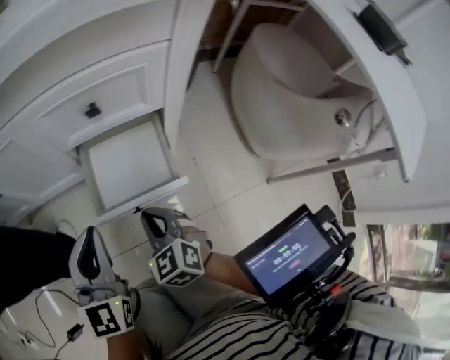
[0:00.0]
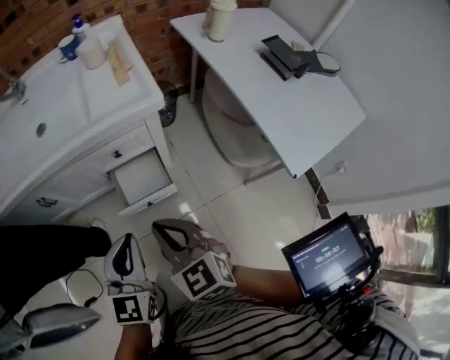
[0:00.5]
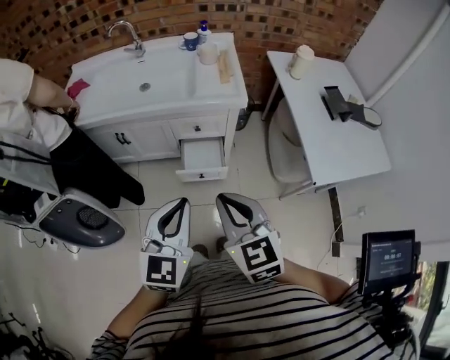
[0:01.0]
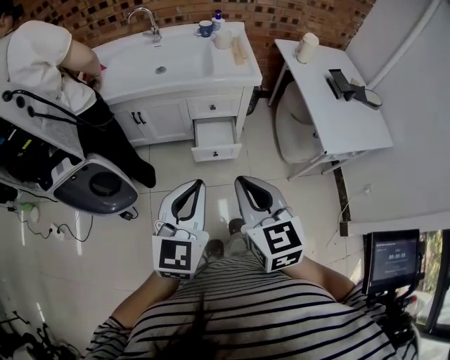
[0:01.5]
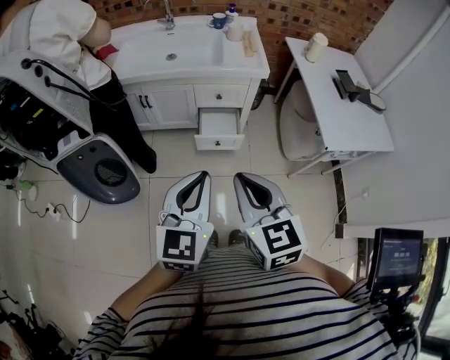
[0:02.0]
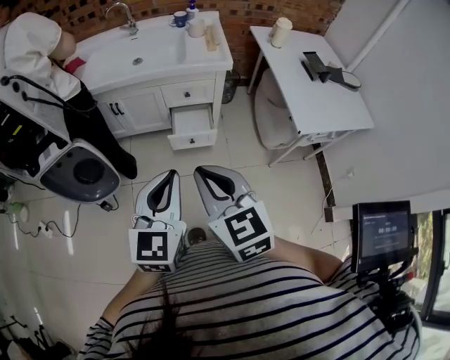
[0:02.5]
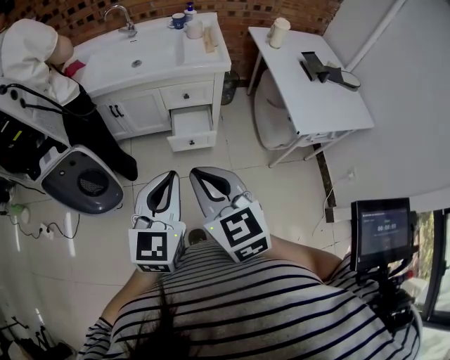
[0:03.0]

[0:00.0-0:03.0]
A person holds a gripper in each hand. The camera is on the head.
0:00.0 to 0:01.5: The two grippers go about 60 cm upward and backward. The right gripper turns by roughly 30 degrees.
0:01.5 to 0:03.0: The right gripper changes place by roughly 5 cm.

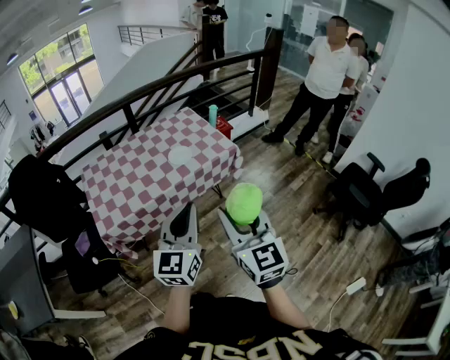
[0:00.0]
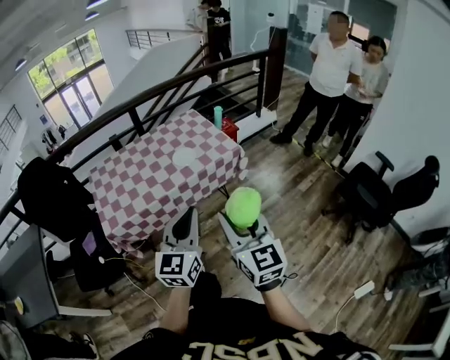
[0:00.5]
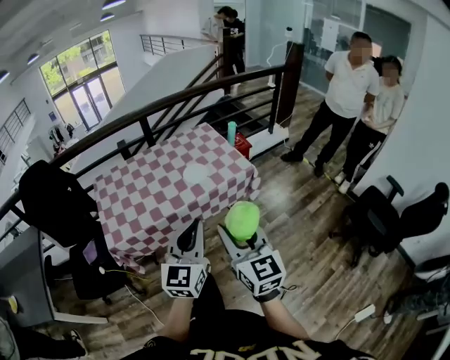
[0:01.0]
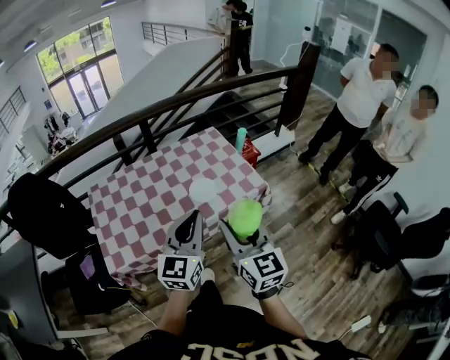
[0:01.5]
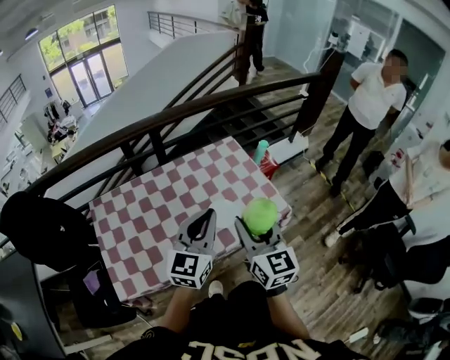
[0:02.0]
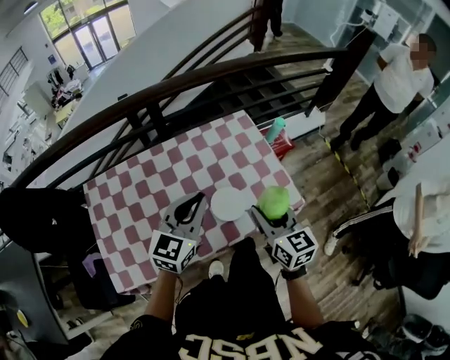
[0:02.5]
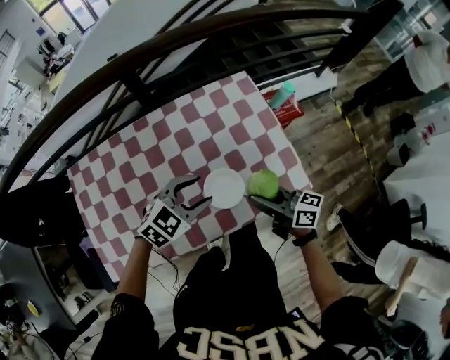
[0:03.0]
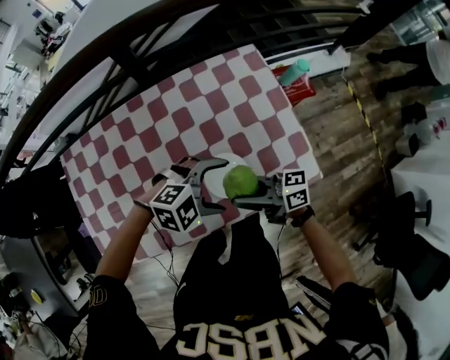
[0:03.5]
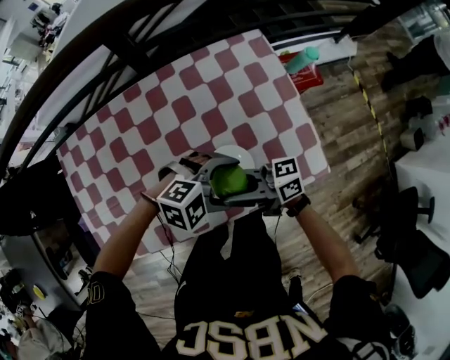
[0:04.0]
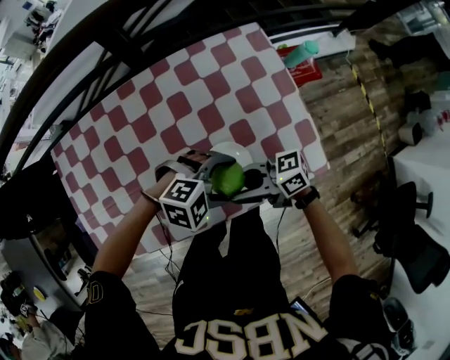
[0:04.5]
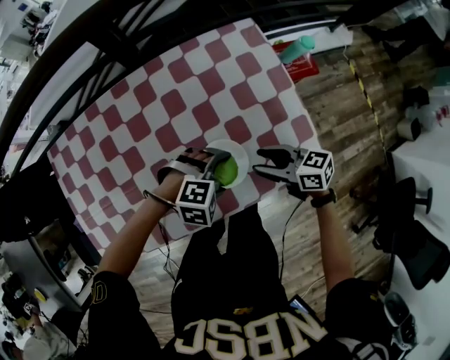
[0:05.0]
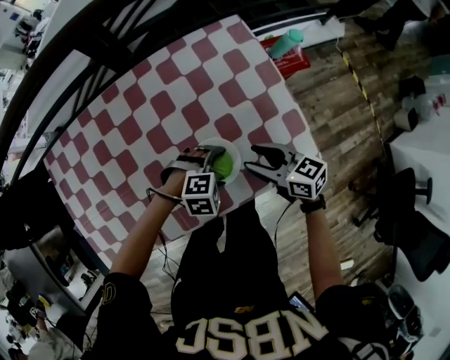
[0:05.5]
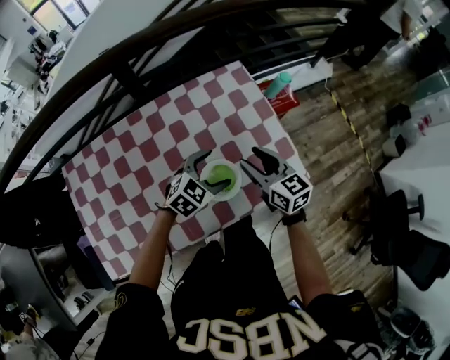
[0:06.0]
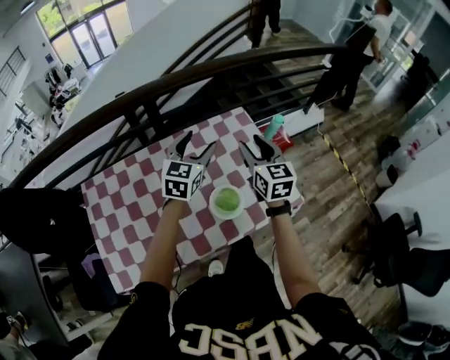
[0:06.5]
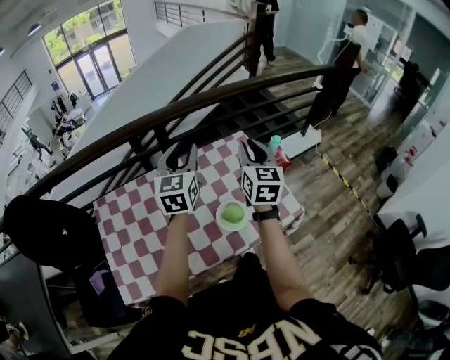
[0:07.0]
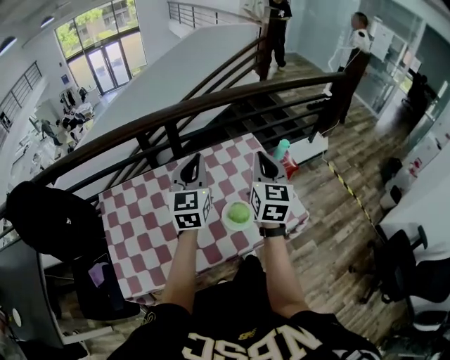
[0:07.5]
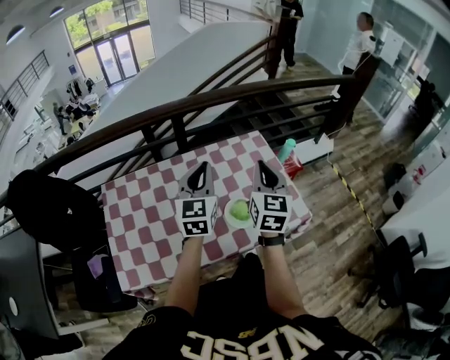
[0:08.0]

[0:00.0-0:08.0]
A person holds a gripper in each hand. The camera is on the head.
0:00.0 to 0:02.0: Both grippers travel together forward, approximately 40 cm.
0:02.0 to 0:04.0: Both grippers travel together downward, approximately 25 cm. The right gripper changes its angle by some 90 degrees. The left gripper angles its fingers downward, by approximately 40 degrees, and opens up.
0:04.0 to 0:06.0: The left gripper goes downward and returns, approximately 10 cm each way, and turns by roughly 40 degrees, while the right gripper goes downward and returns, some 10 cm each way, and changes its angle by approximately 70 degrees.
0:06.0 to 0:08.0: The right gripper travels upward by about 20 cm, swivels approximately 40 degrees, and closes up; the left gripper heads upward and to the left, covering roughly 30 cm, points its fingers roughly 30 degrees further upward, and closes up.

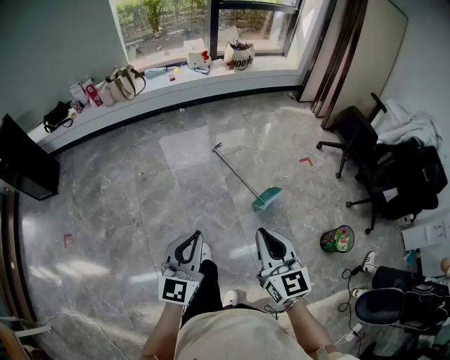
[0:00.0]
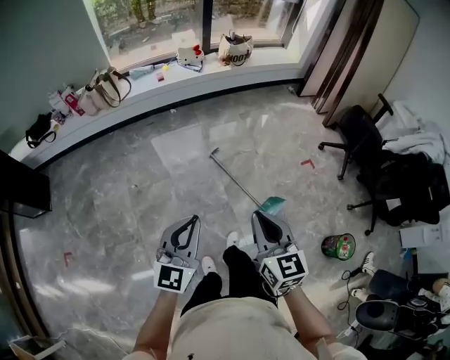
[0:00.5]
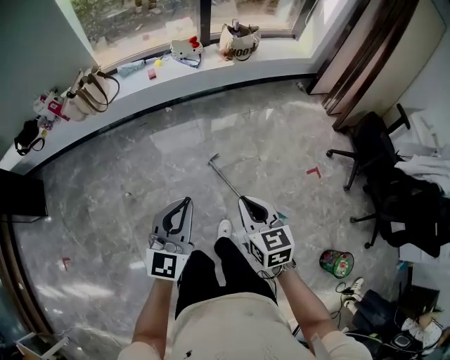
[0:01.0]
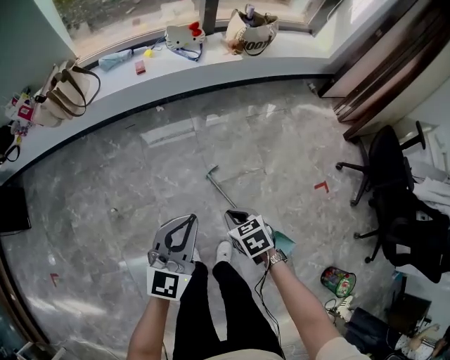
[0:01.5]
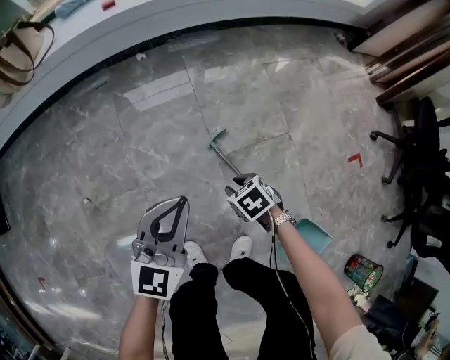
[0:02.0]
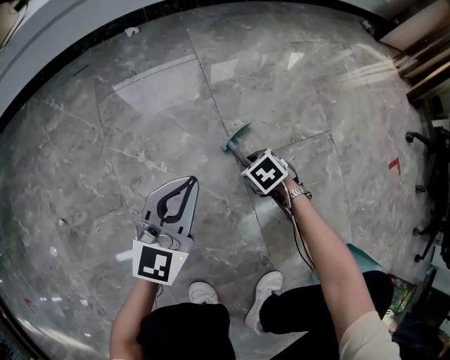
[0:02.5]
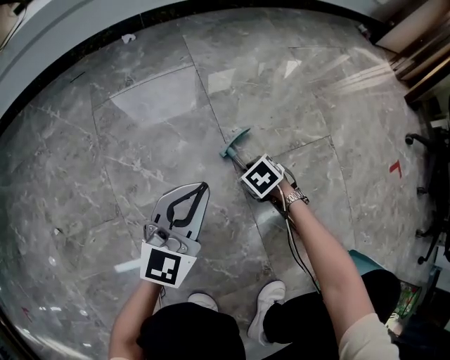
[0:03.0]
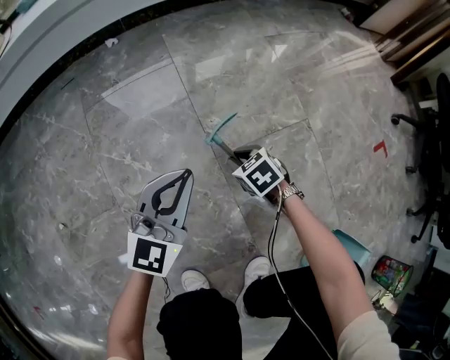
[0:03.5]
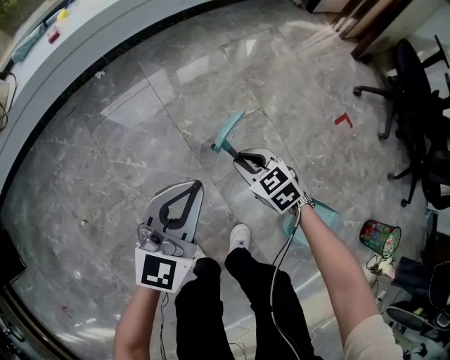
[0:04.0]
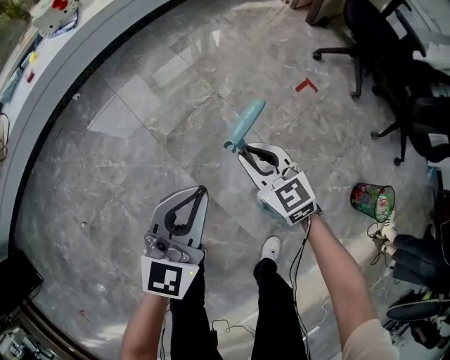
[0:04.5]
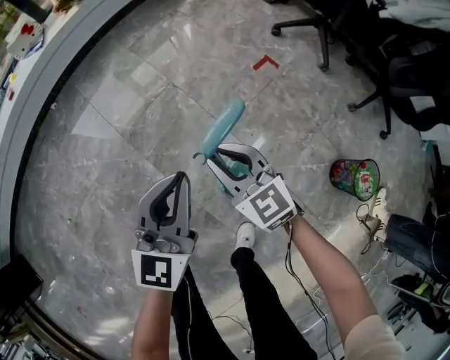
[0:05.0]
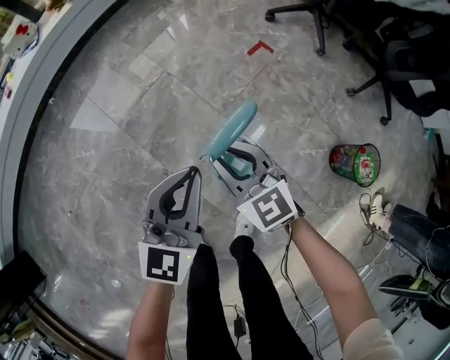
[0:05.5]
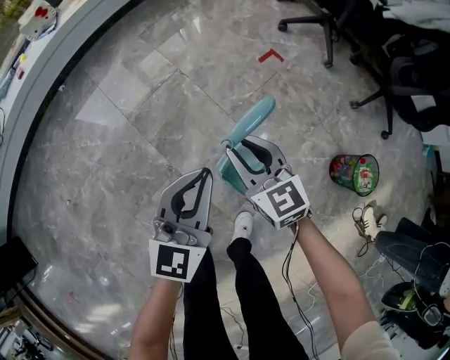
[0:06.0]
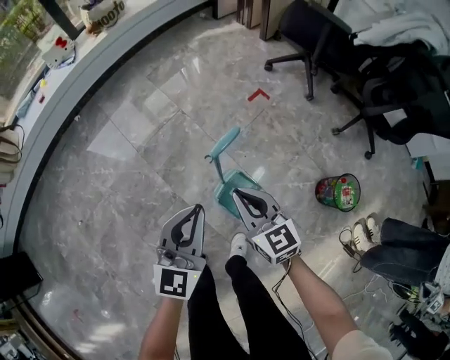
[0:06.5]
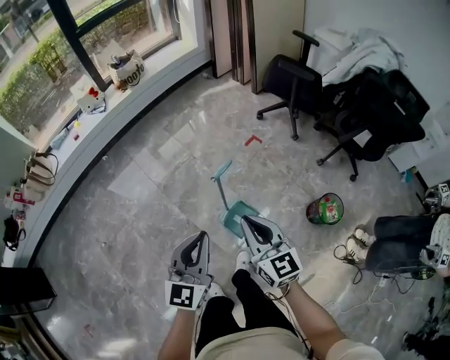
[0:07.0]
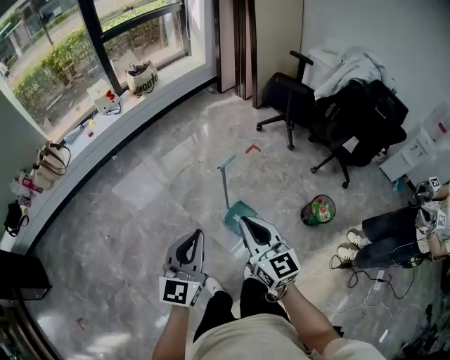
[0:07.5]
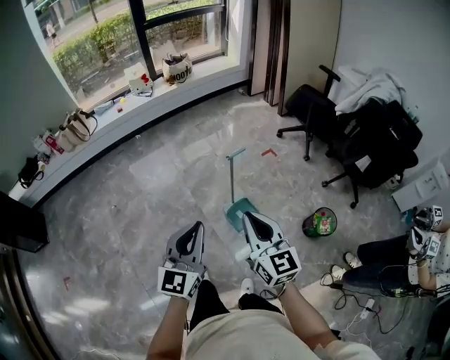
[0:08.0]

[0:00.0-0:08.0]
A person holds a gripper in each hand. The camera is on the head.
0:00.0 to 0:02.0: The two grippers travel together, about 70 cm. The right gripper heads downward, covering roughly 80 cm, tips its fingers downward by approximately 60 degrees, and opens.
0:02.0 to 0:04.0: The left gripper goes downward and returns, about 35 cm each way; the right gripper reaches about 35 cm downward, then returns, and turns by some 30 degrees.
0:04.0 to 0:06.0: Both grippers are carried to the right and backward, some 40 cm. The right gripper goes some 25 cm upward, and turns by about 40 degrees.
0:06.0 to 0:08.0: Both grippers move upward and backward, some 60 cm.

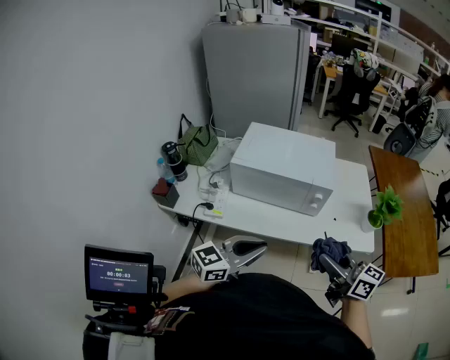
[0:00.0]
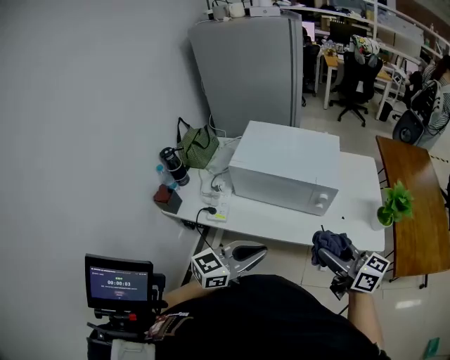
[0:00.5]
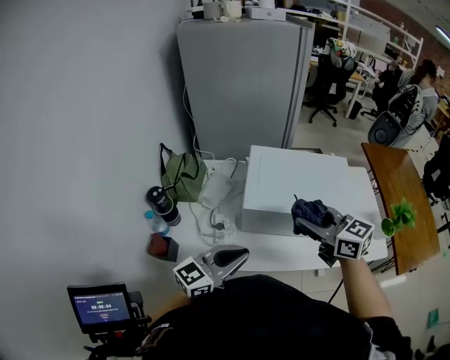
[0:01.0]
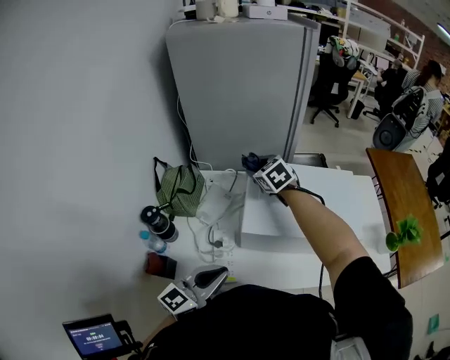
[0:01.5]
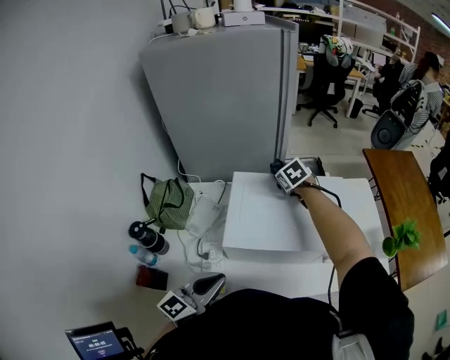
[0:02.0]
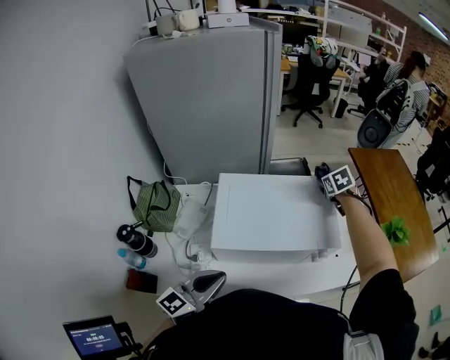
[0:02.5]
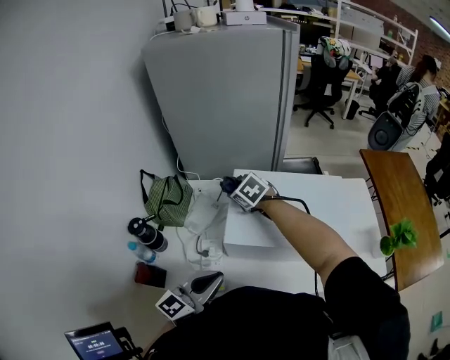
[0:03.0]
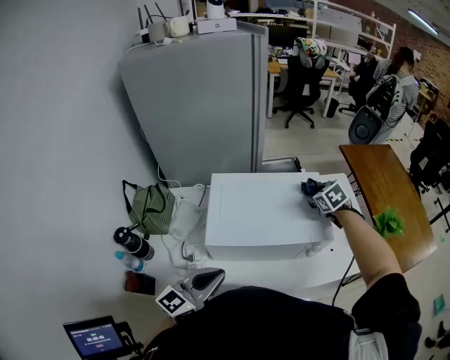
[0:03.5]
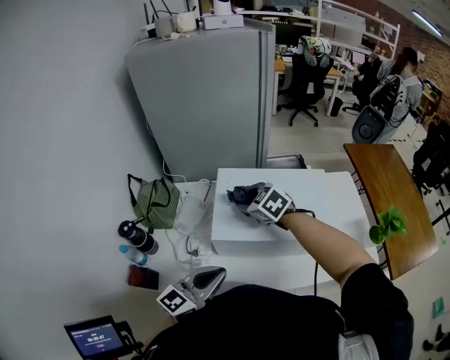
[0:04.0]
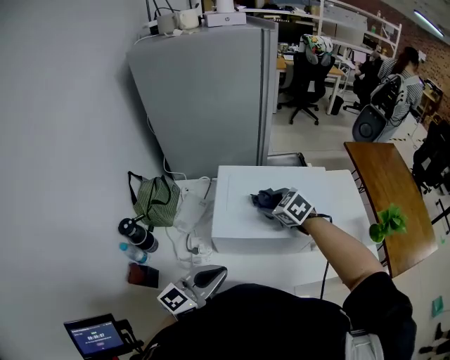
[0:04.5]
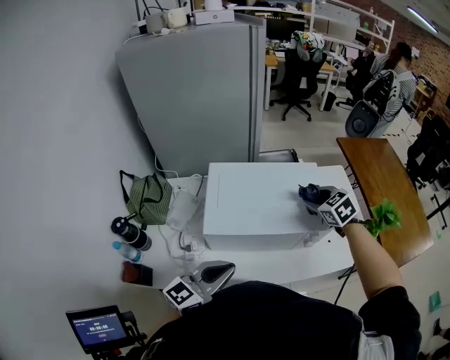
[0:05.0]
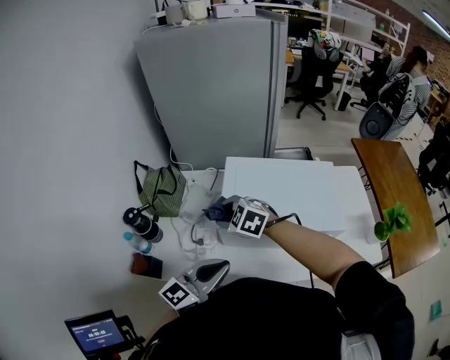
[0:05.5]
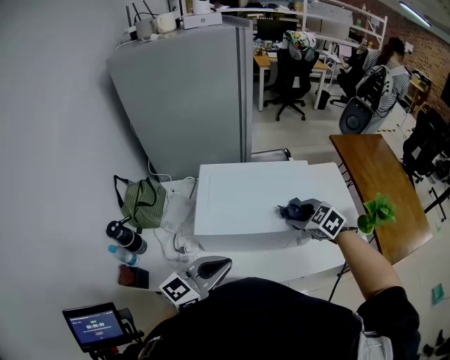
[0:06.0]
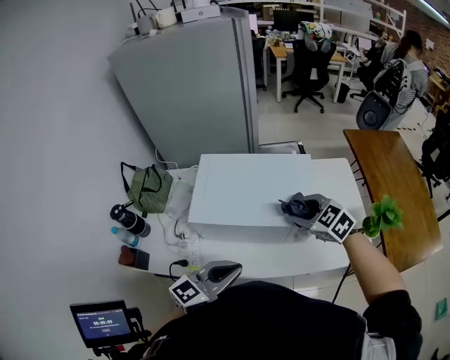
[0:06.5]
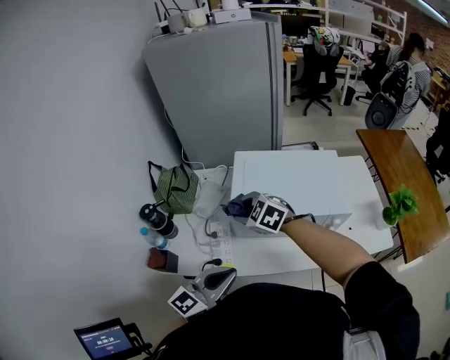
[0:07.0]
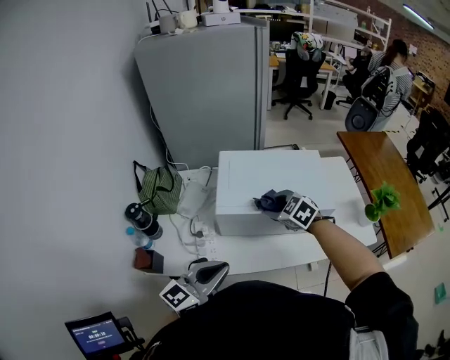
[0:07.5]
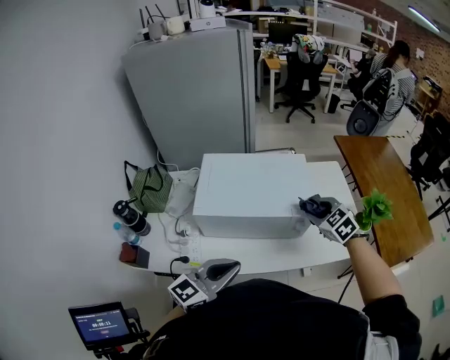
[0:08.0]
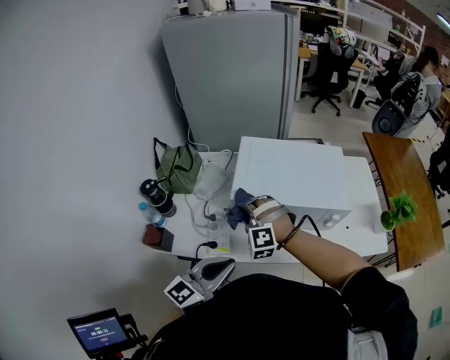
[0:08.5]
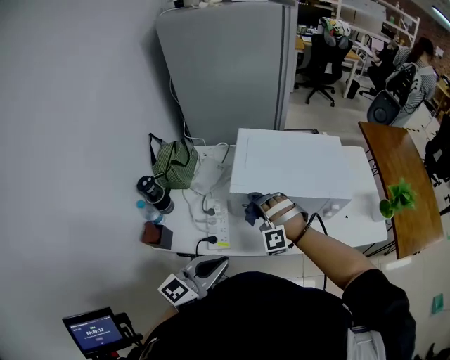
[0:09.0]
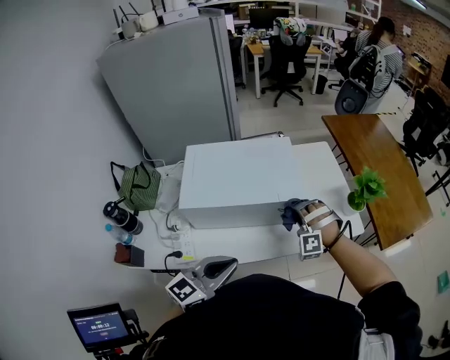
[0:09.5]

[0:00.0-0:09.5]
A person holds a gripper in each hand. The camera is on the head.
0:00.0 to 0:02.0: The left gripper is displaced forward and to the left by about 30 cm. Meanwhile the right gripper moves forward, about 60 cm, and angles its fingers downward, by some 50 degrees.
0:02.0 to 0:04.0: The right gripper moves about 20 cm, and changes its angle by about 30 degrees.
0:04.0 to 0:05.5: The right gripper moves backward, some 10 cm, and goes to the right and returns, approximately 25 cm each way.
0:05.5 to 0:07.5: The left gripper heads backward, covering roughly 5 cm, and goes to the right and returns, roughly 15 cm each way. Meanwhile the right gripper moves left and right over about 35 cm, changing direction 2 times.
0:07.5 to 0:09.5: The right gripper moves left and right over approximately 35 cm, changing direction 2 times, and rotates around the line of its fingers by approximately 60 degrees, counterclockwise from behind. The left gripper swings left and right, some 15 cm each way, with 2 reversals.
